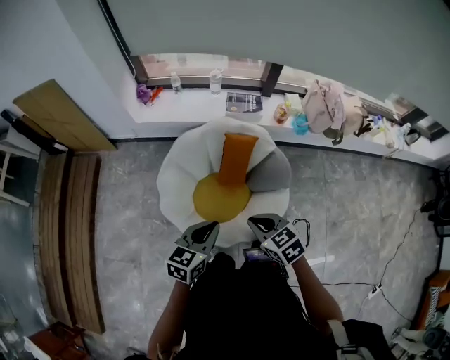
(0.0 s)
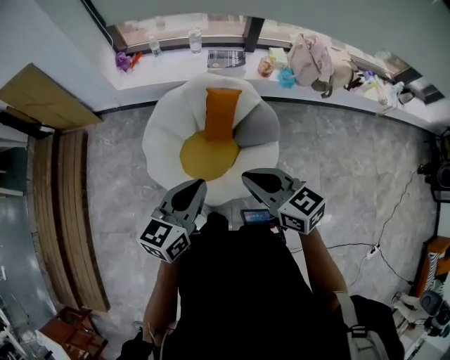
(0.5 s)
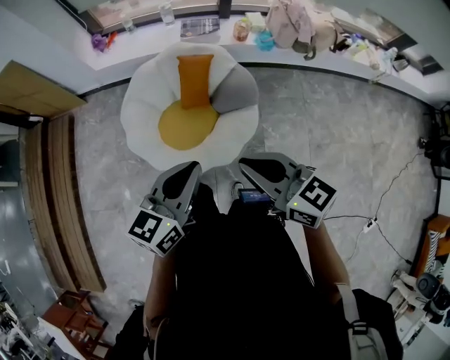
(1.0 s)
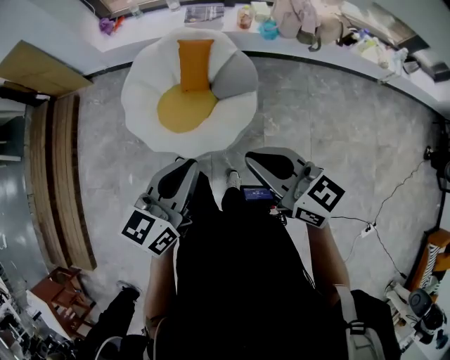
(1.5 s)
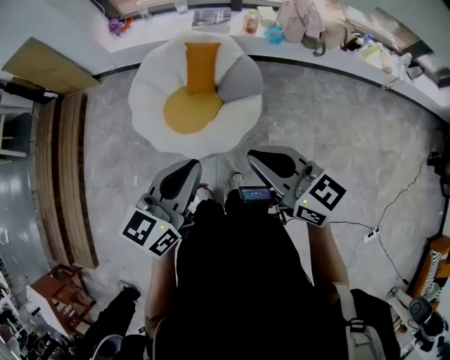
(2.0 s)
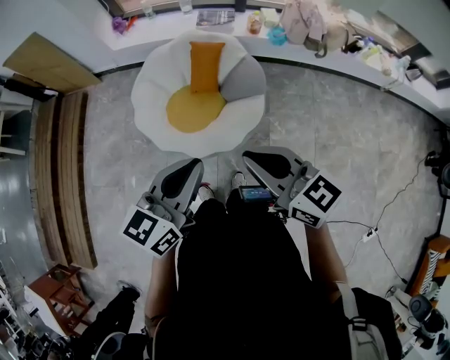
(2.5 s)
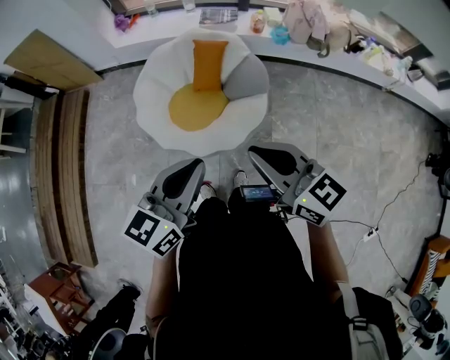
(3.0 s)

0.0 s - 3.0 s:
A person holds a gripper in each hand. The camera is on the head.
0.0 s - 1.5 s: Both grippers travel together backward, to the right and upward, approximately 30 cm. The right gripper tips its fingers upward by approximately 30 degrees.
1.5 s - 3.0 s: The right gripper ends up roughly 5 cm from where it was; the left gripper ends up some 5 cm from where it was.

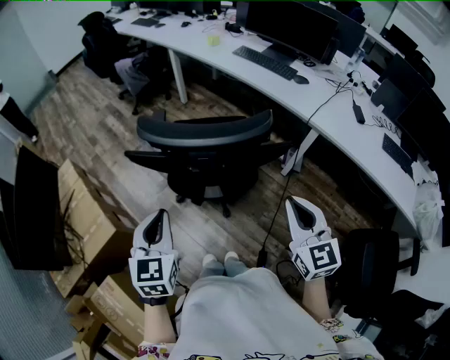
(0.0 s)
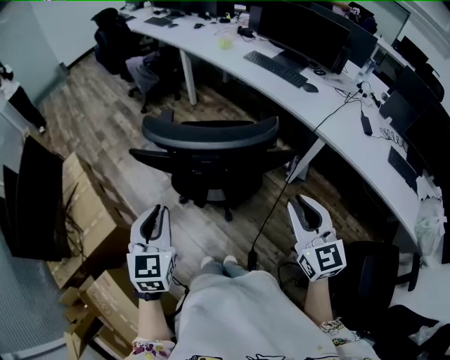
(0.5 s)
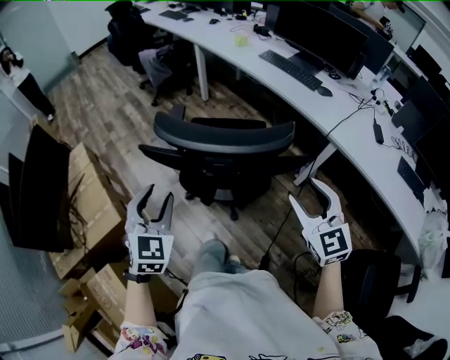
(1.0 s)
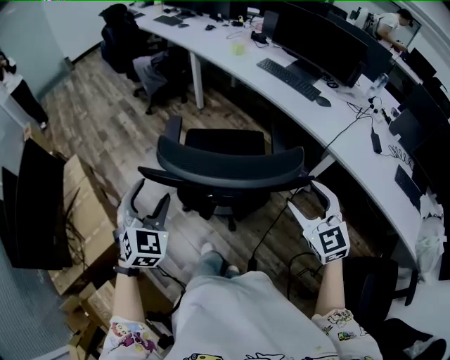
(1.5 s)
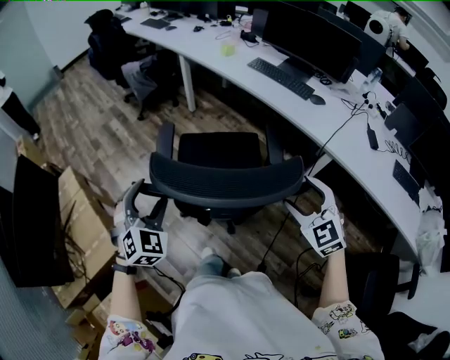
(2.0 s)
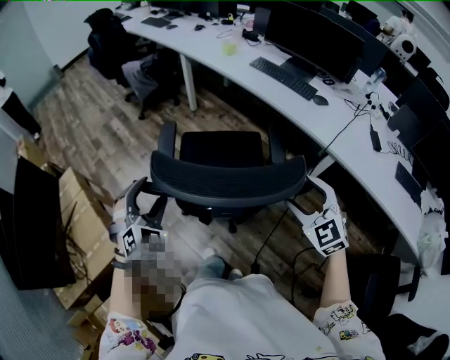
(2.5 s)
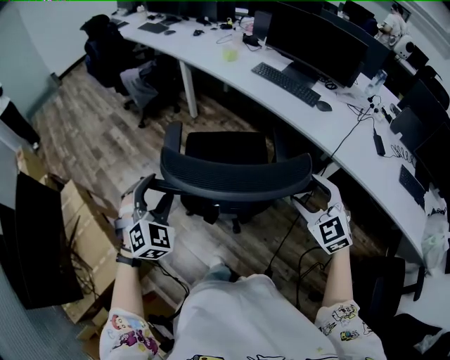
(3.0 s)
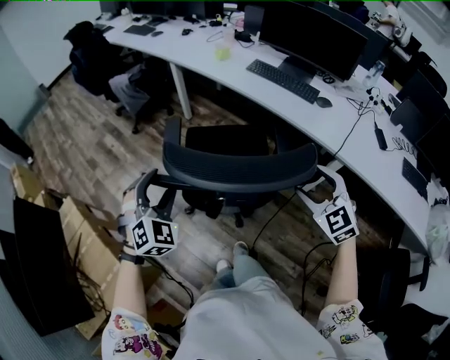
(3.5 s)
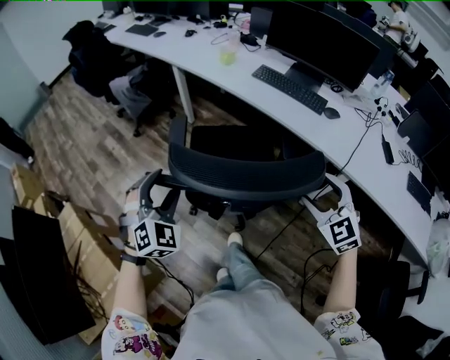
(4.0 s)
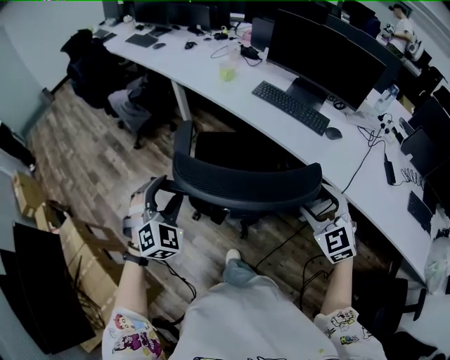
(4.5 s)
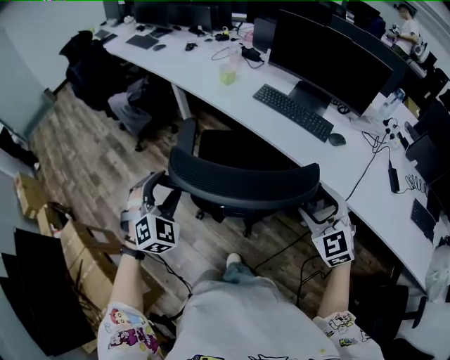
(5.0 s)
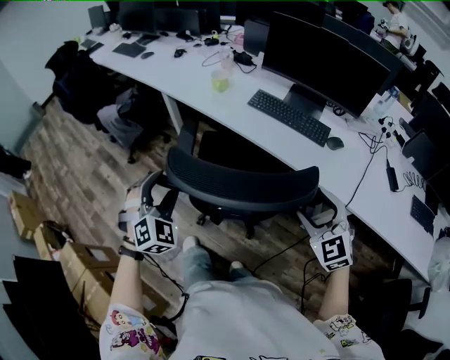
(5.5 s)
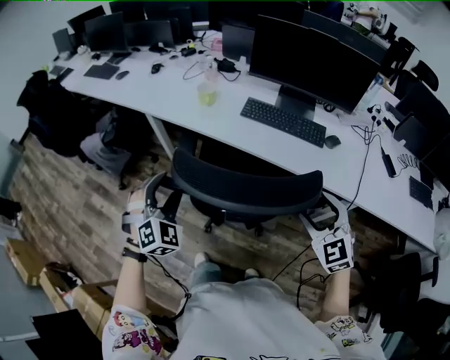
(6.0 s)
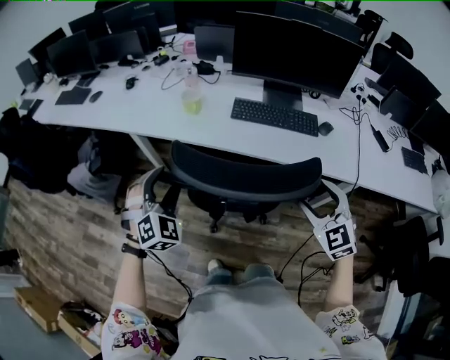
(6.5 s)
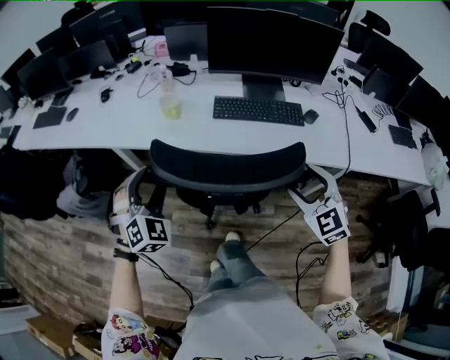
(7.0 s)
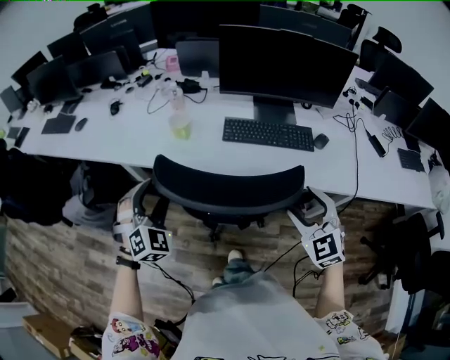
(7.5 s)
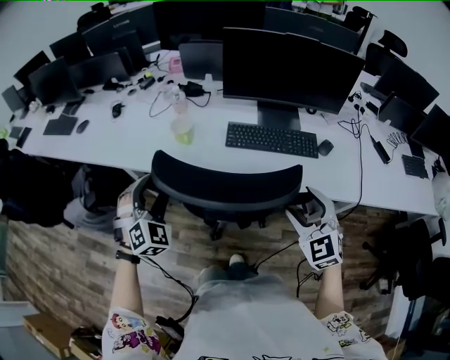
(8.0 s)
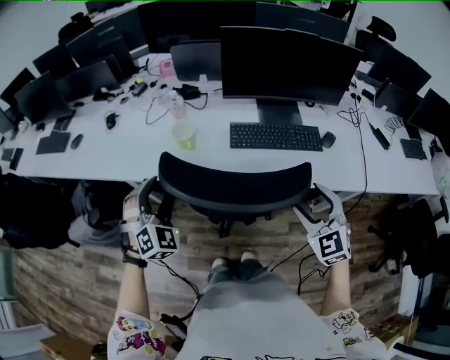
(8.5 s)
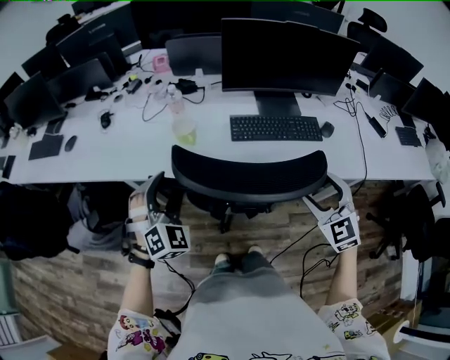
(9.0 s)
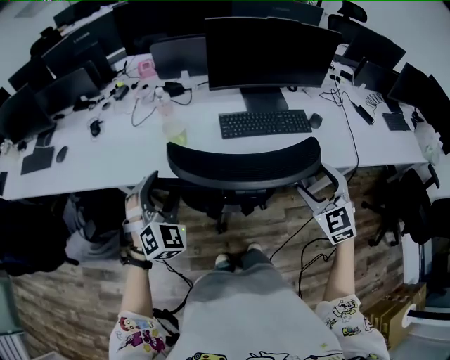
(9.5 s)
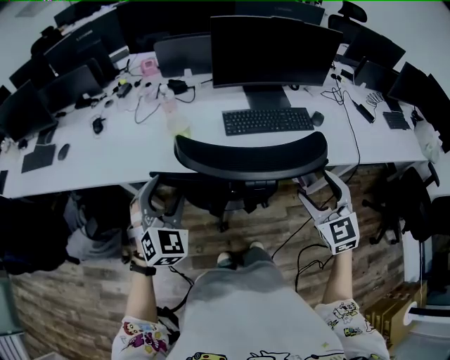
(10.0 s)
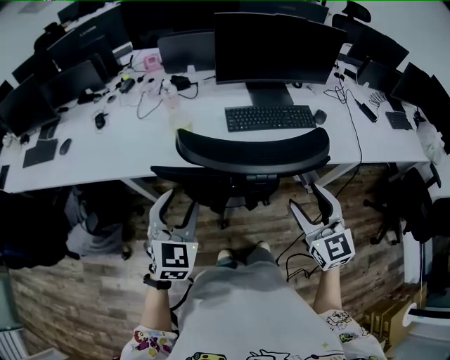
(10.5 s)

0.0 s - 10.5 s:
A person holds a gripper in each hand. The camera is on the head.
0.0 s - 2.0 s: Both grippers move forward, about 15 cm. The left gripper rolls clockwise, seen from behind, by roughly 40 degrees, and opens its fingers. Meanwhile the right gripper turns by roughly 30 degrees, and opens its fingers.
2.0 s - 4.0 s: Both grippers move forward, about 20 cm.
4.0 s - 6.5 s: The right gripper goes about 20 cm forward, and rotates some 30 degrees, while the left gripper moves forward, some 40 cm, and rotates roughly 20 degrees.
6.5 s - 8.5 s: Both grippers travel together forward, approximately 15 cm.
8.5 s - 10.5 s: The left gripper is displaced backward by roughly 5 cm, and rotates approximately 40 degrees; the right gripper heads backward and to the left, covering about 10 cm, and turns by approximately 30 degrees.

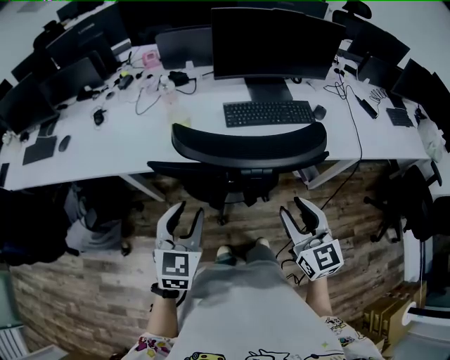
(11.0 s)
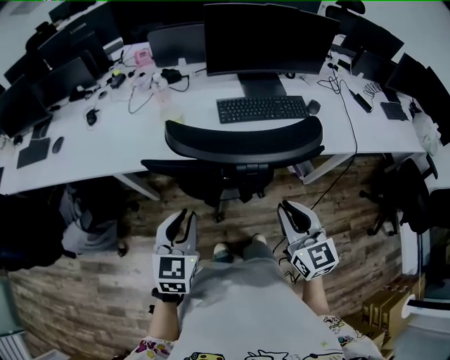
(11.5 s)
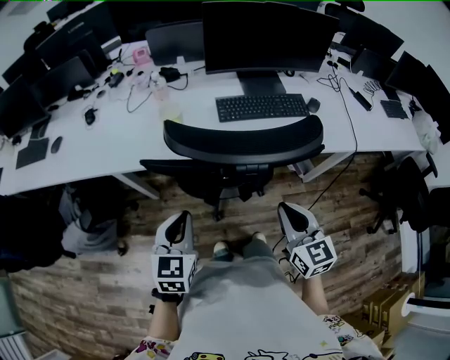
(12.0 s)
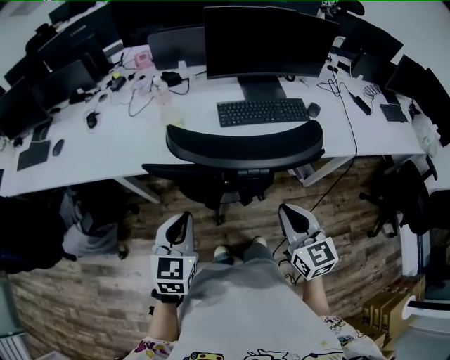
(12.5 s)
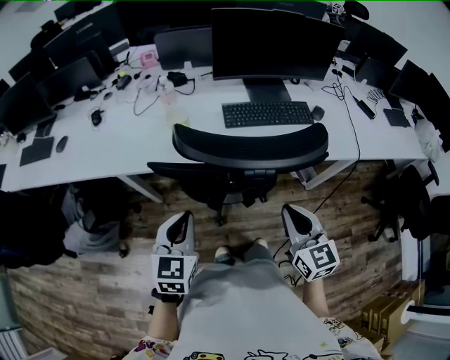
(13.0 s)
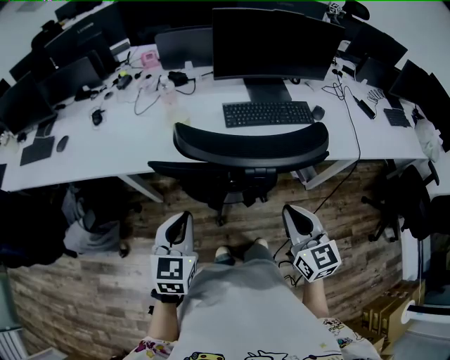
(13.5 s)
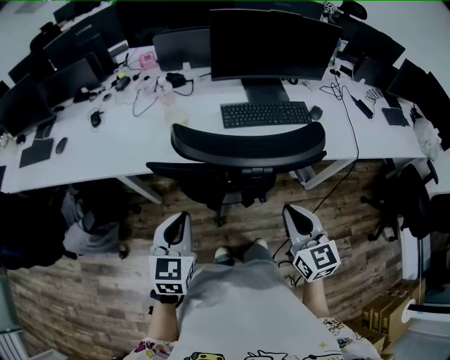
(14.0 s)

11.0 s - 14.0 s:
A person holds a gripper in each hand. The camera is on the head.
11.0 s - 12.5 s: The right gripper closes up. The left gripper closes.
12.5 s - 14.0 s: The grippers make only small movements.

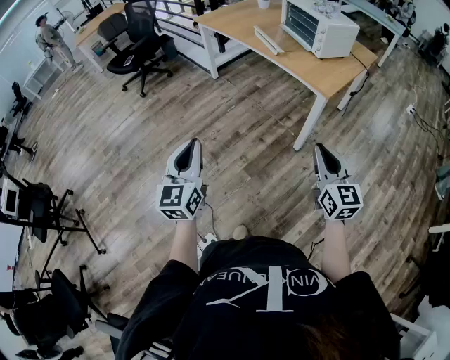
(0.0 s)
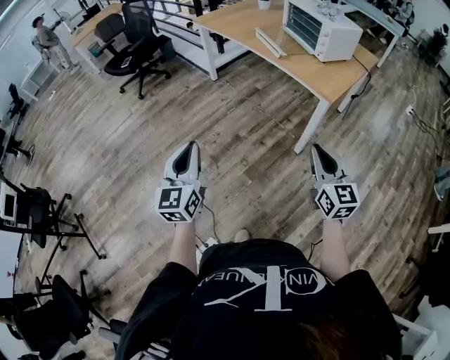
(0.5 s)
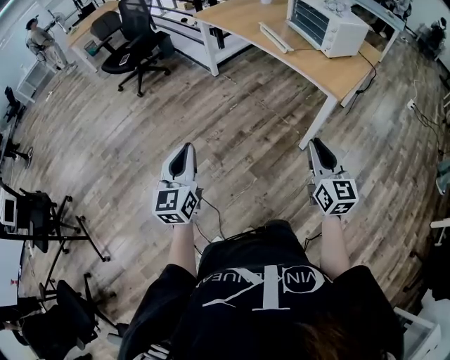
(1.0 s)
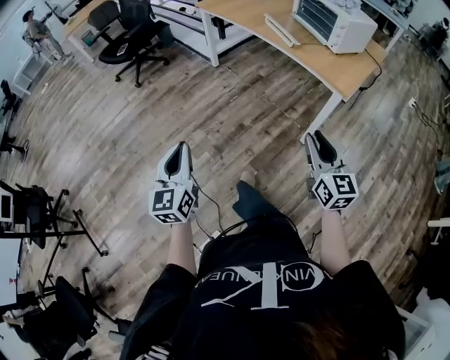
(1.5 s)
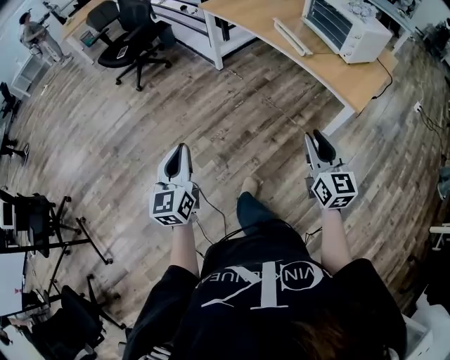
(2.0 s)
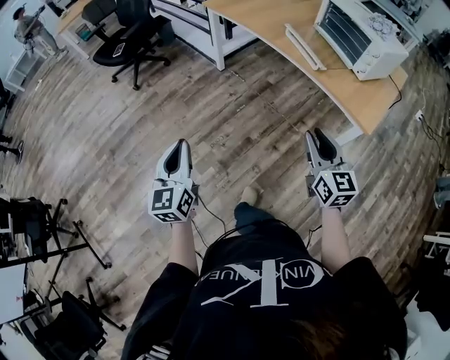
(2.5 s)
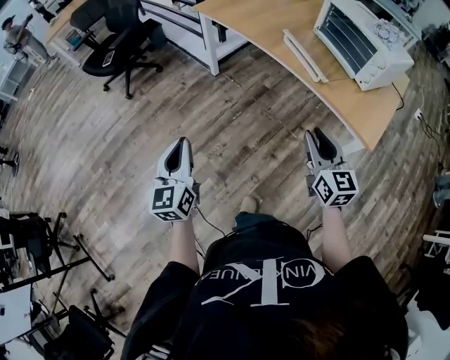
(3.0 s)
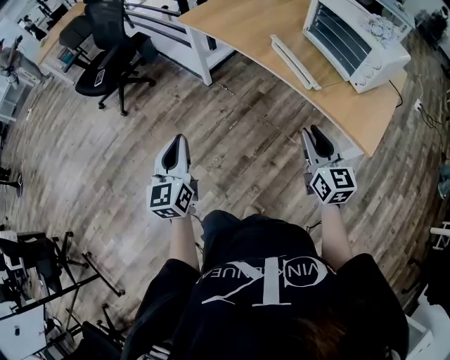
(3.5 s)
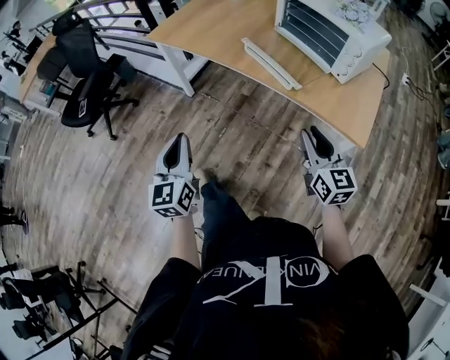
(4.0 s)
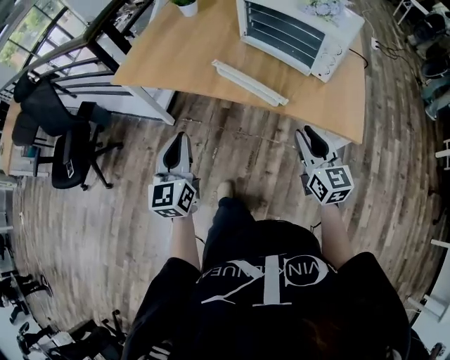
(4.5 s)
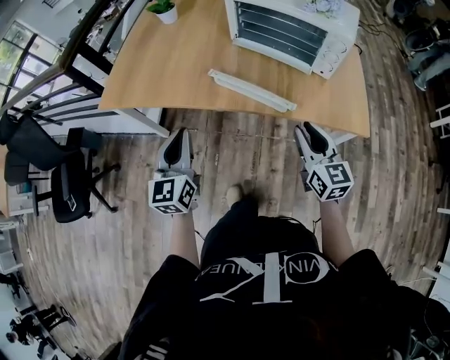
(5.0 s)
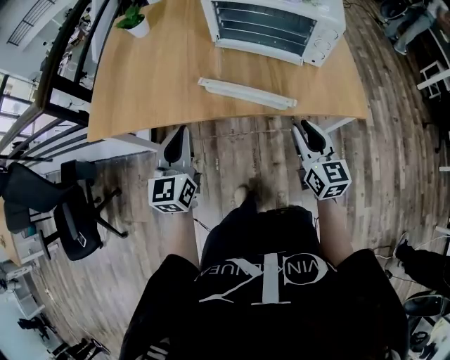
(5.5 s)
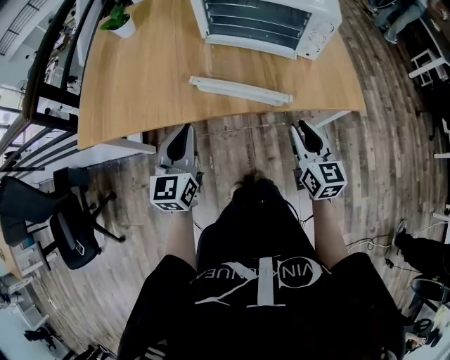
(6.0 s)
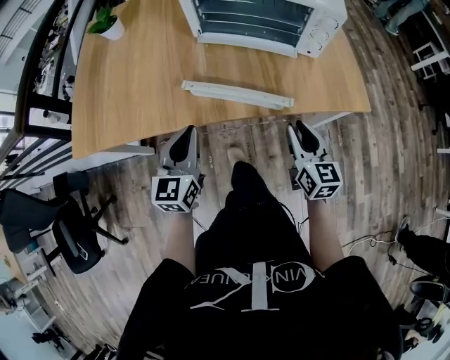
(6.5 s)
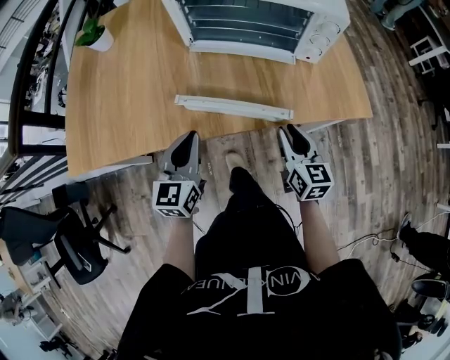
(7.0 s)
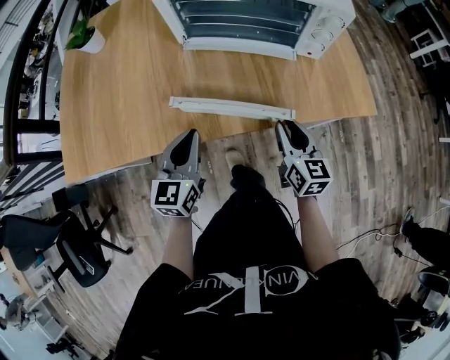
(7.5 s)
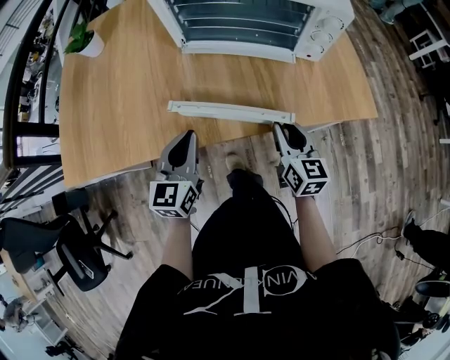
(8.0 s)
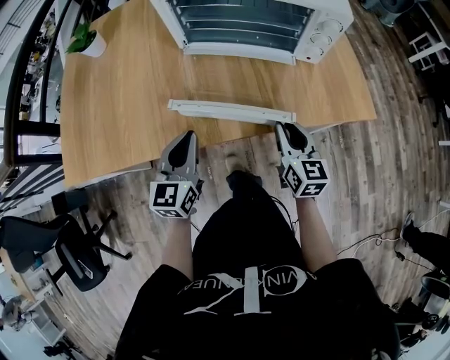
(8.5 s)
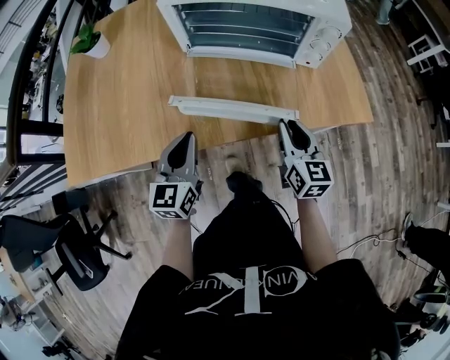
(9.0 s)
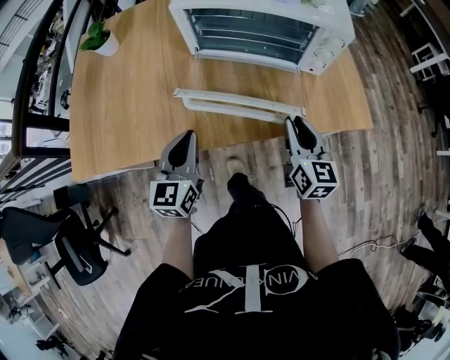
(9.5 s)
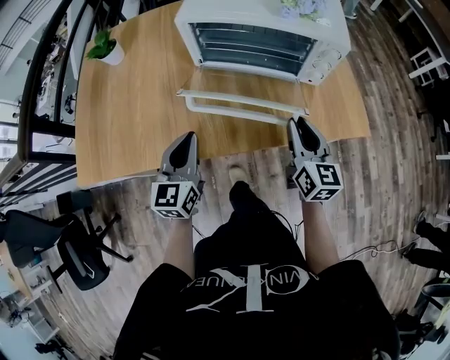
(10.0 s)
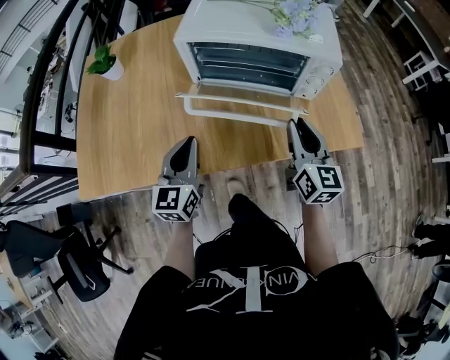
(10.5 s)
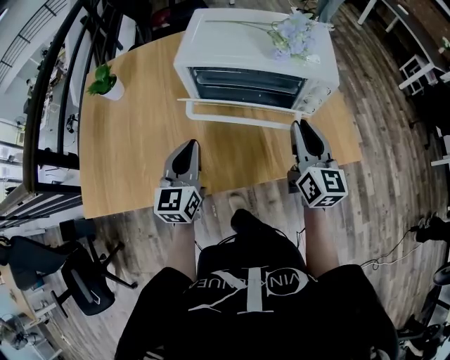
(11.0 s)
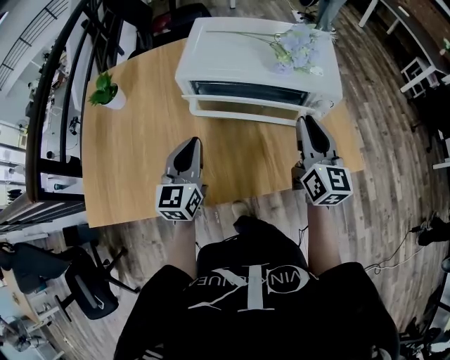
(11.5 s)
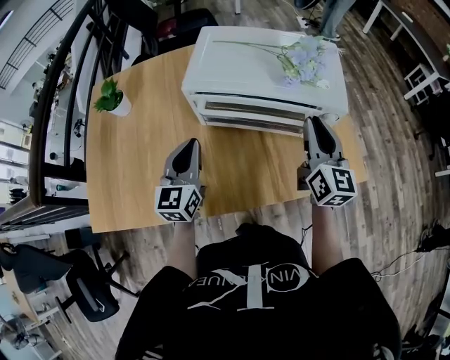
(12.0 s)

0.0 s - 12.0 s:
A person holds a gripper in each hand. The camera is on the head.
0.0 s - 2.0 s: The right gripper travels forward and to the left by roughly 20 cm; the left gripper goes some 20 cm to the left and forward.
2.0 s - 4.0 s: Both grippers move forward, about 30 cm.
4.0 s - 6.0 s: The left gripper changes place by approximately 35 cm, and swivels about 50 degrees; the right gripper shifts by approximately 15 cm, and changes its angle by some 40 degrees.
6.0 s - 8.0 s: The right gripper travels downward and forward by roughly 15 cm. Meanwhile the left gripper heads forward and downward, covering roughly 15 cm.
8.0 s - 10.0 s: The right gripper is displaced upward by roughly 10 cm, while the left gripper travels upward by some 5 cm.
10.0 s - 12.0 s: The left gripper shifts about 15 cm forward. The right gripper is displaced forward and upward by about 15 cm.
